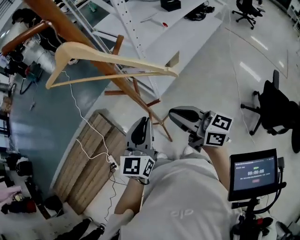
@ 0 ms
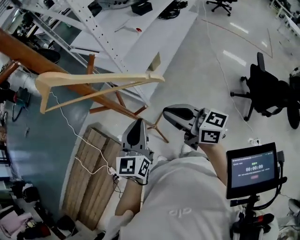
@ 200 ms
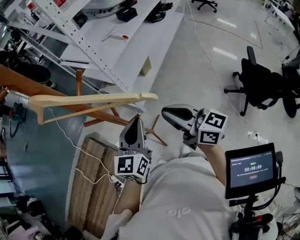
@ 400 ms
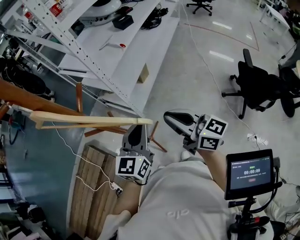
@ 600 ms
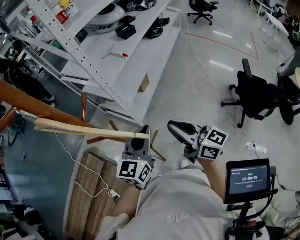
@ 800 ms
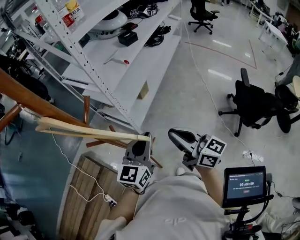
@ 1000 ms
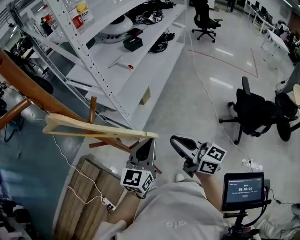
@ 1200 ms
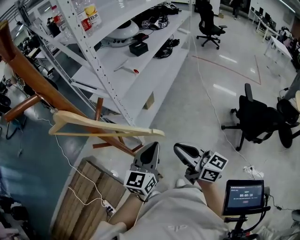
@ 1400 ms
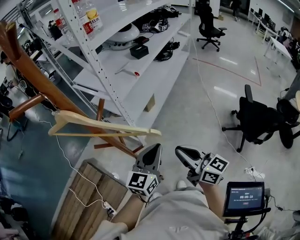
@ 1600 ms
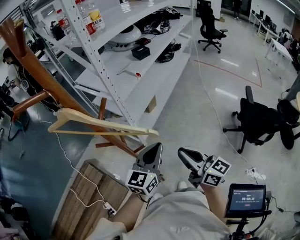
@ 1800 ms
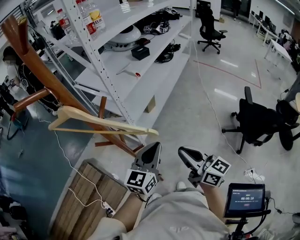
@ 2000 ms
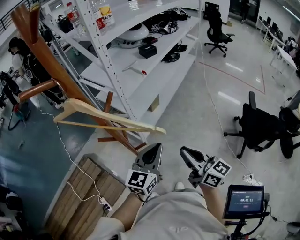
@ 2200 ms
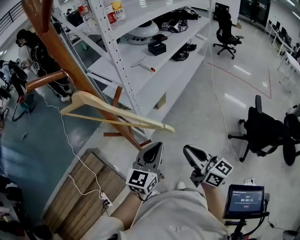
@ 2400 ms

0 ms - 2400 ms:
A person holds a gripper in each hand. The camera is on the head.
0 ms - 1200 ms: The two grippers go roughly 10 cm to the right. The right gripper swivels roughly 20 degrees, while the left gripper changes its angle by roughly 20 degrees.
1200 ms - 2400 ms: The grippers make only small movements.

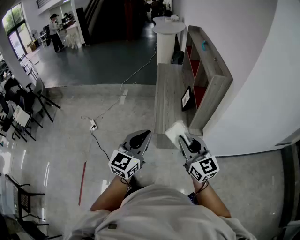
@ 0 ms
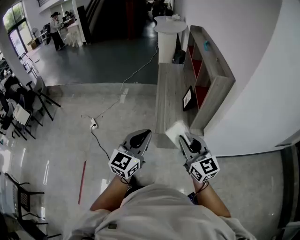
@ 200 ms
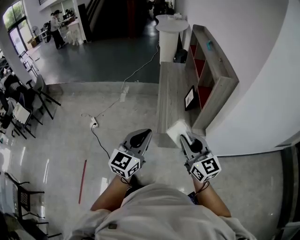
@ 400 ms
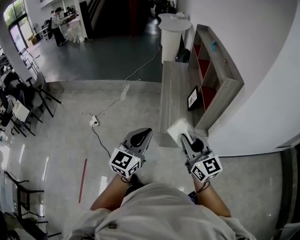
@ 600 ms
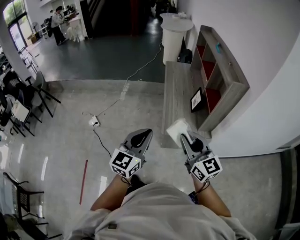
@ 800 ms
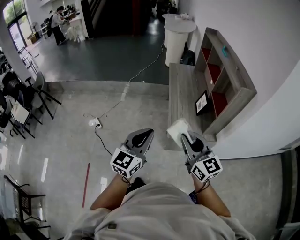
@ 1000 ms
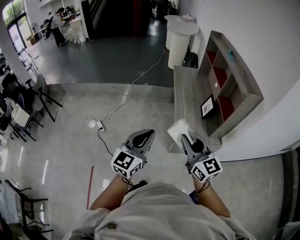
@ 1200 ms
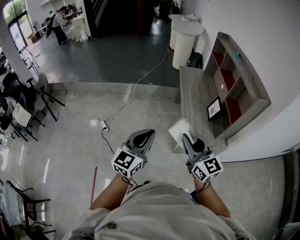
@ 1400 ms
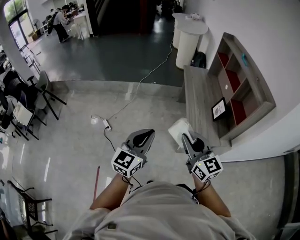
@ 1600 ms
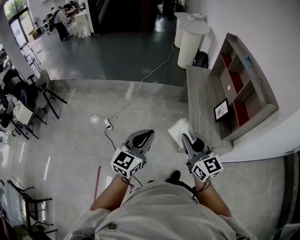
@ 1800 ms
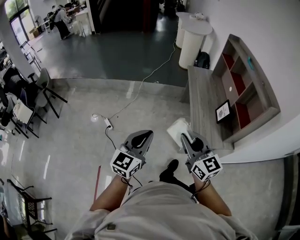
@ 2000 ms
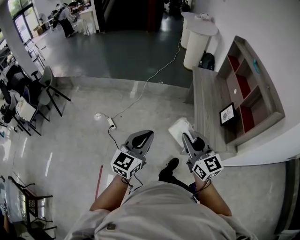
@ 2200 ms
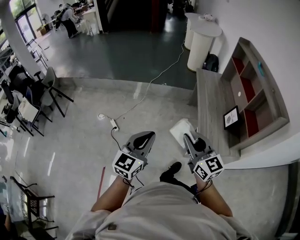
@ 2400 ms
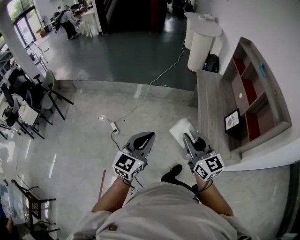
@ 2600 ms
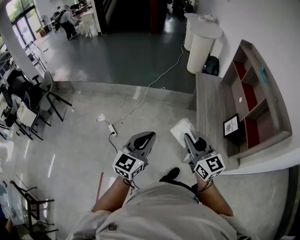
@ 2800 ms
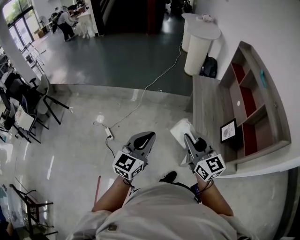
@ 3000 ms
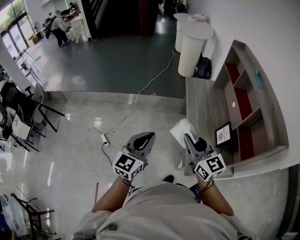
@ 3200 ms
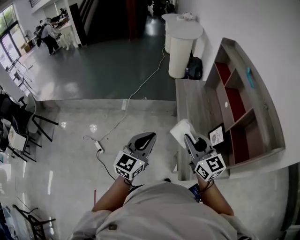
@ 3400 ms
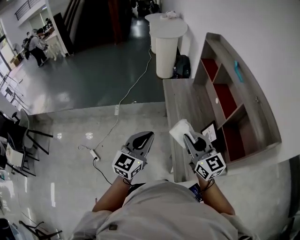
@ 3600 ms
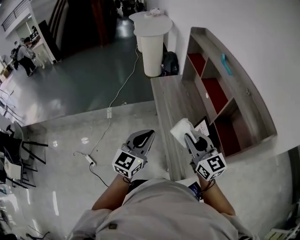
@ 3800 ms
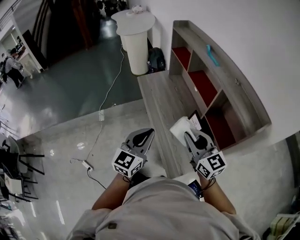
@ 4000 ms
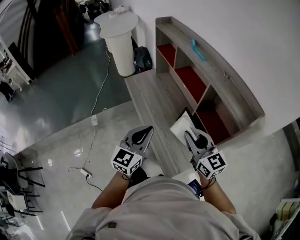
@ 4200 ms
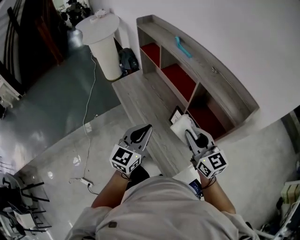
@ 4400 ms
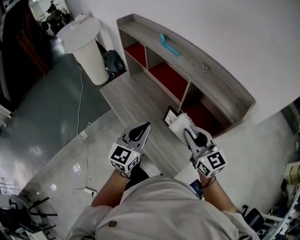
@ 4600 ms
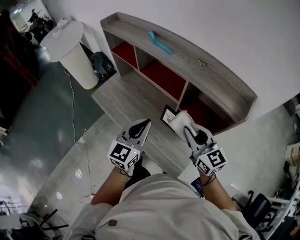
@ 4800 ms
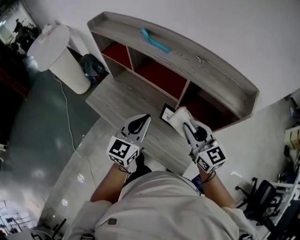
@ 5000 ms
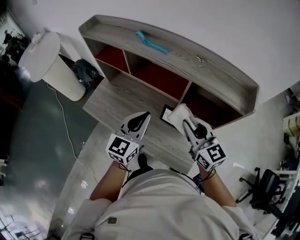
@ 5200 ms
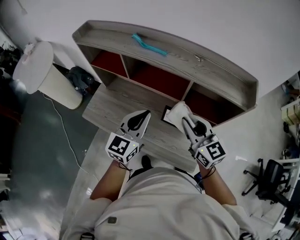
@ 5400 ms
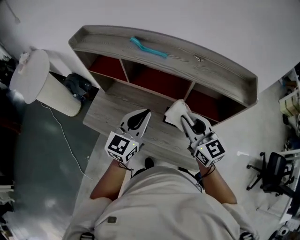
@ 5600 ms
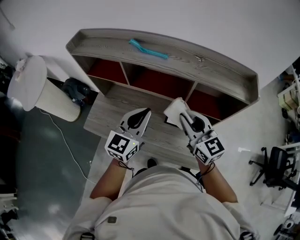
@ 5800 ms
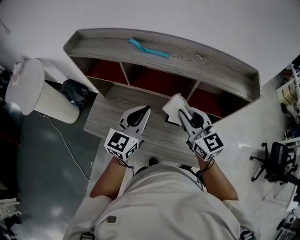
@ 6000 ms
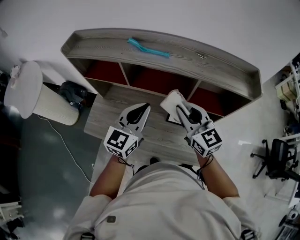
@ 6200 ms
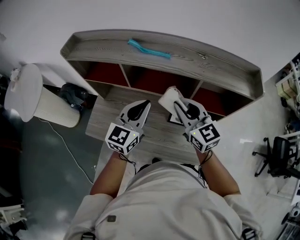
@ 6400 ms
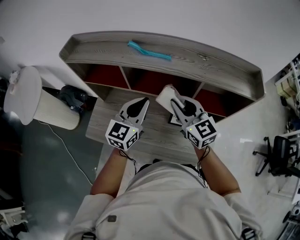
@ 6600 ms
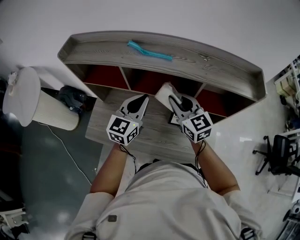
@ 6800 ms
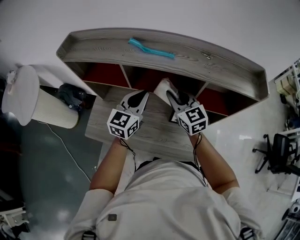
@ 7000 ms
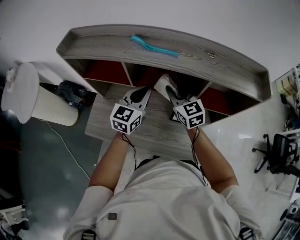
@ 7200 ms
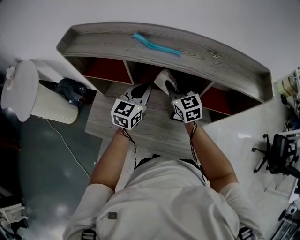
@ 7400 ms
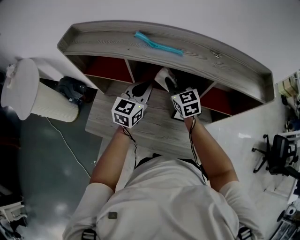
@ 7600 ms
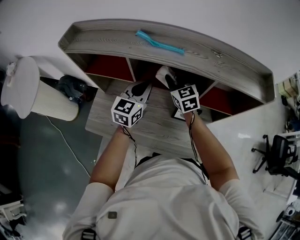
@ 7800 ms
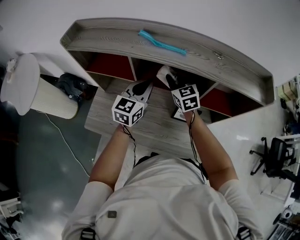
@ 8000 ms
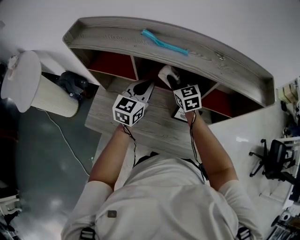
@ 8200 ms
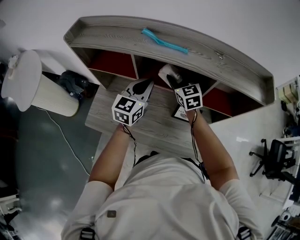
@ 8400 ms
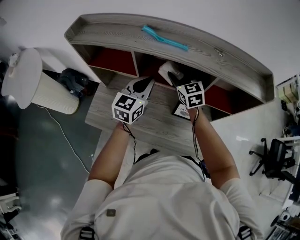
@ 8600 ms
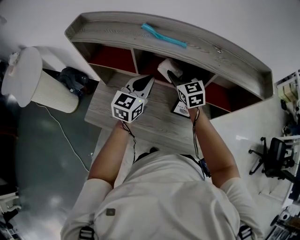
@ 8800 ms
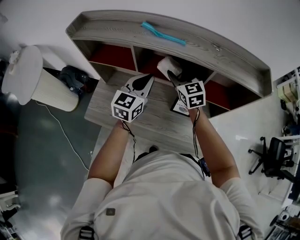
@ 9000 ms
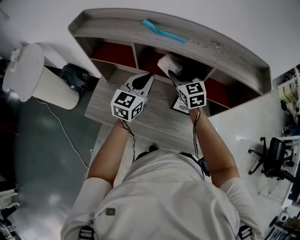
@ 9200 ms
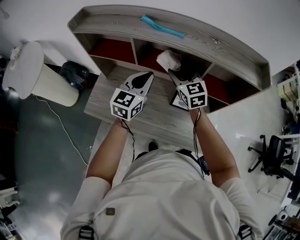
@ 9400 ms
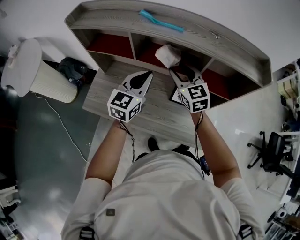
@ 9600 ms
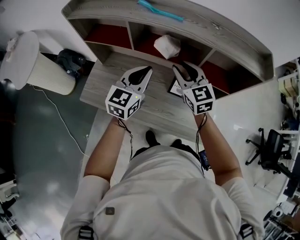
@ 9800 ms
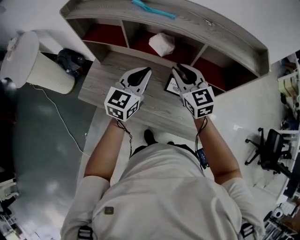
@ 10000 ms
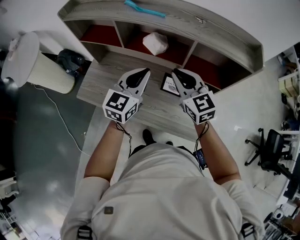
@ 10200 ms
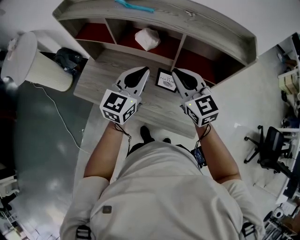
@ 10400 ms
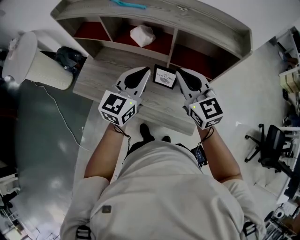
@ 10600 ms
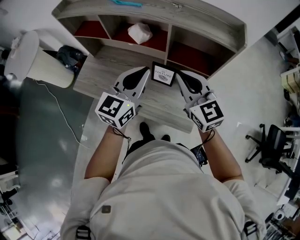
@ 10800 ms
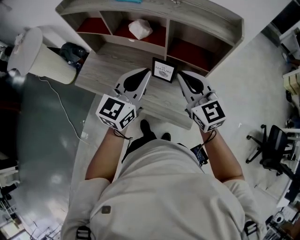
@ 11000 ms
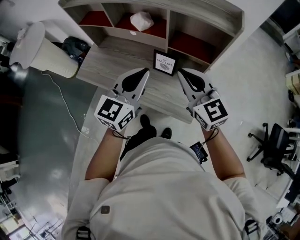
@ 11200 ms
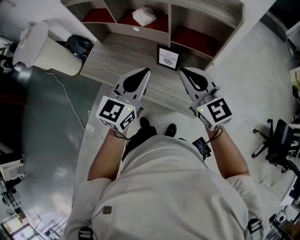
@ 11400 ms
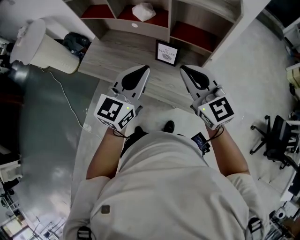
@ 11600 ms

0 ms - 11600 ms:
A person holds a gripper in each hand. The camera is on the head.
0 ms - 1400 ms: Both grippers move to the left and forward, roughly 30 cm.
1400 ms - 2800 ms: Both grippers travel together forward and to the left, roughly 20 cm.
2800 ms - 4400 ms: The left gripper changes place by some 50 cm, and swivels approximately 40 degrees; the right gripper shifts by some 40 cm, and rotates about 40 degrees.
4400 ms - 5800 ms: The right gripper shifts by approximately 20 cm, and rotates roughly 40 degrees, while the left gripper changes place by some 25 cm, and swivels roughly 40 degrees.
5800 ms - 7200 ms: The right gripper moves forward, to the left and downward, roughly 20 cm, while the left gripper shifts some 15 cm forward and downward.
7200 ms - 8800 ms: The right gripper opens its fingers.
8800 ms - 10200 ms: Both grippers travel together backward and to the right, approximately 15 cm. The right gripper closes its fingers.
10200 ms - 11600 ms: The grippers both shift backward and to the right by some 20 cm.

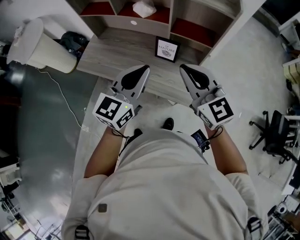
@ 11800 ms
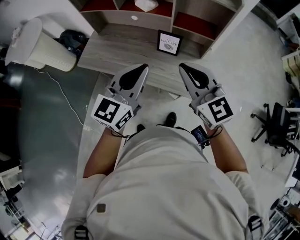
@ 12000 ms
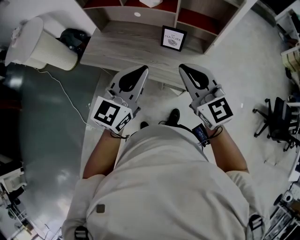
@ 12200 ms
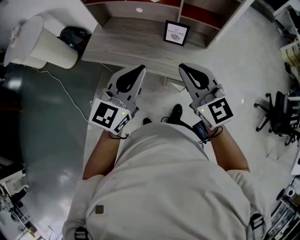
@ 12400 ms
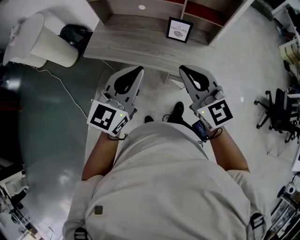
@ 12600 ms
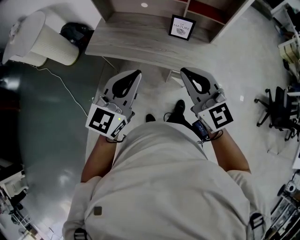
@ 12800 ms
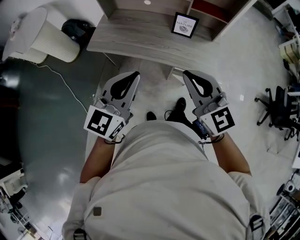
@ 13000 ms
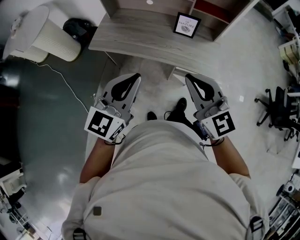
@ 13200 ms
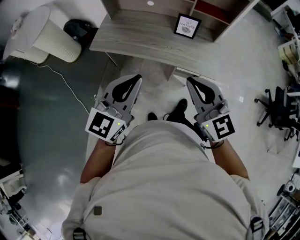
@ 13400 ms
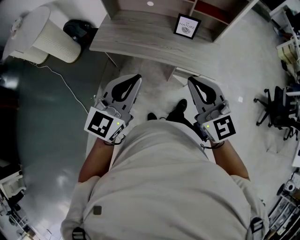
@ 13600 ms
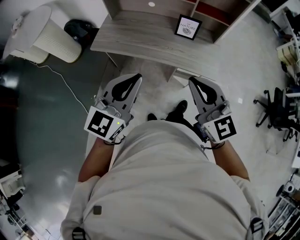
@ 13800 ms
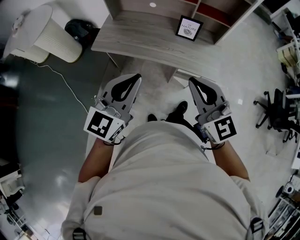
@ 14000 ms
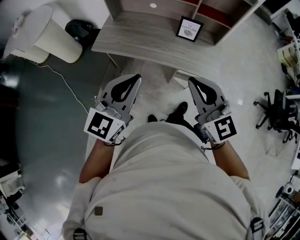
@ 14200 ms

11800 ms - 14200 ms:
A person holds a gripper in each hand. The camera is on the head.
11800 ms - 13000 ms: The right gripper travels backward and to the left by about 25 cm; the left gripper travels to the left and backward by approximately 25 cm.
13000 ms - 14200 ms: The grippers stay close to where they were, moving slightly.

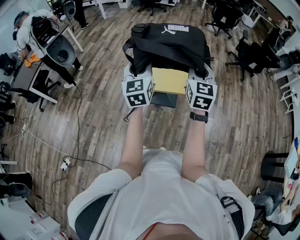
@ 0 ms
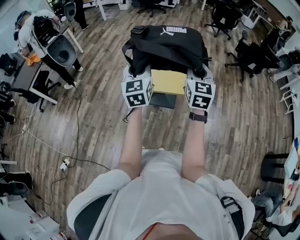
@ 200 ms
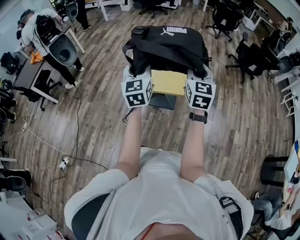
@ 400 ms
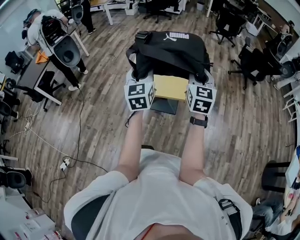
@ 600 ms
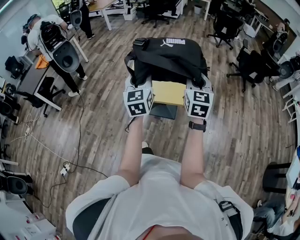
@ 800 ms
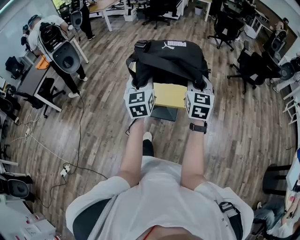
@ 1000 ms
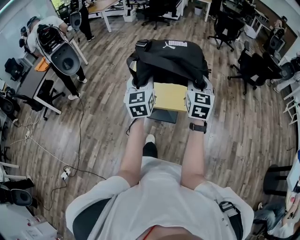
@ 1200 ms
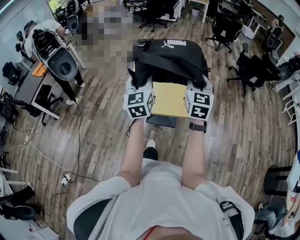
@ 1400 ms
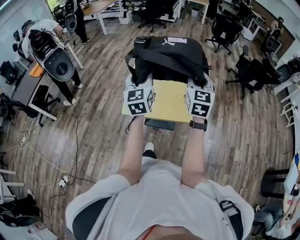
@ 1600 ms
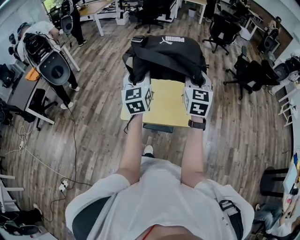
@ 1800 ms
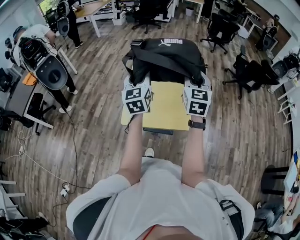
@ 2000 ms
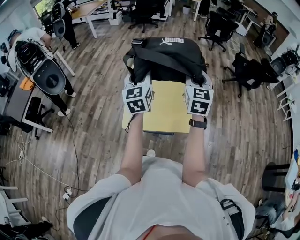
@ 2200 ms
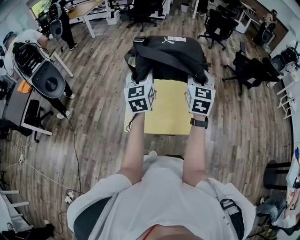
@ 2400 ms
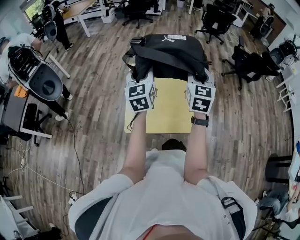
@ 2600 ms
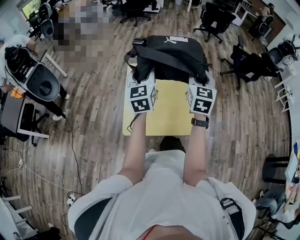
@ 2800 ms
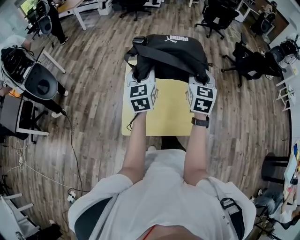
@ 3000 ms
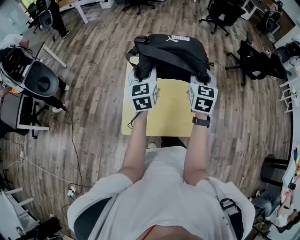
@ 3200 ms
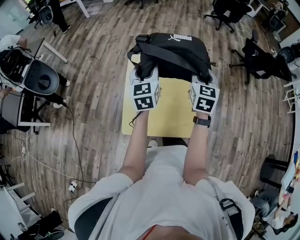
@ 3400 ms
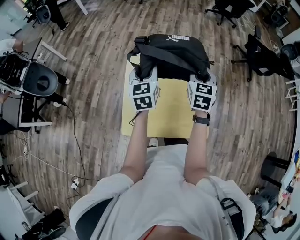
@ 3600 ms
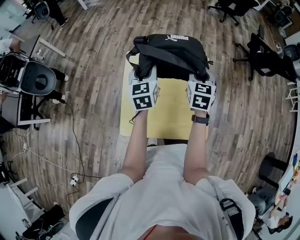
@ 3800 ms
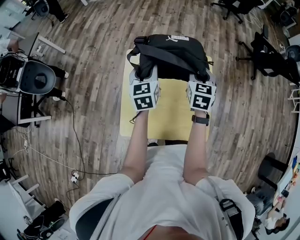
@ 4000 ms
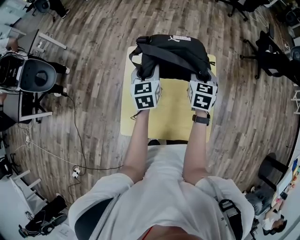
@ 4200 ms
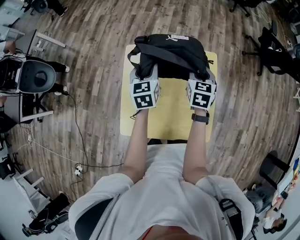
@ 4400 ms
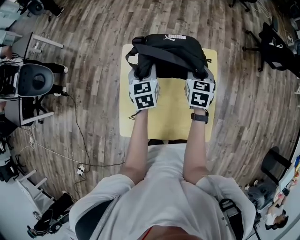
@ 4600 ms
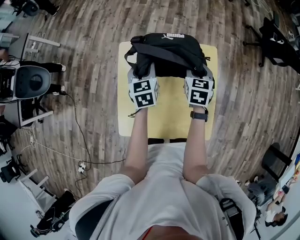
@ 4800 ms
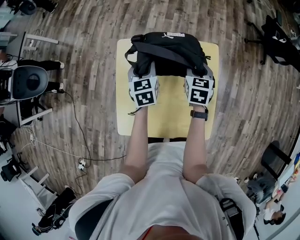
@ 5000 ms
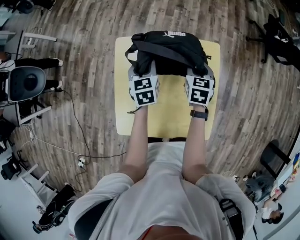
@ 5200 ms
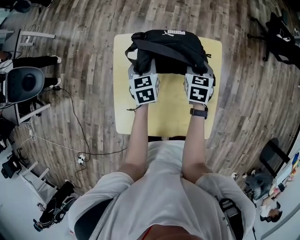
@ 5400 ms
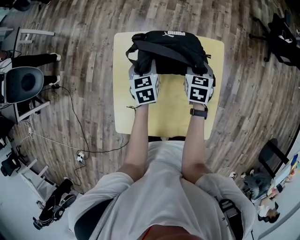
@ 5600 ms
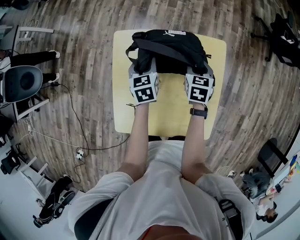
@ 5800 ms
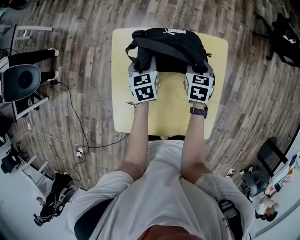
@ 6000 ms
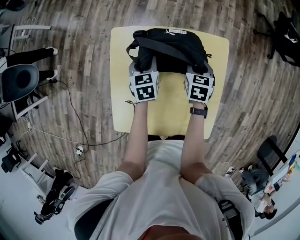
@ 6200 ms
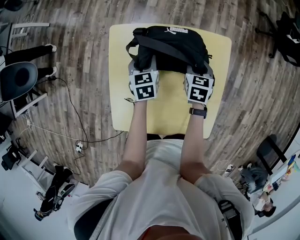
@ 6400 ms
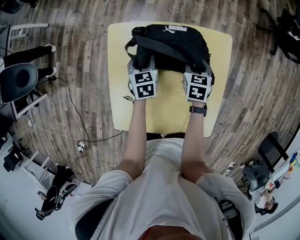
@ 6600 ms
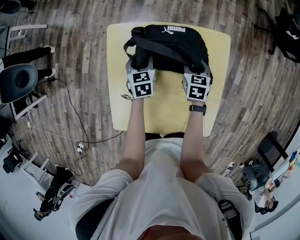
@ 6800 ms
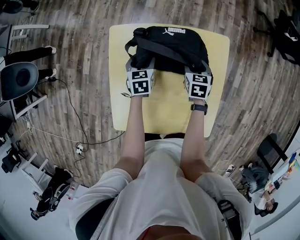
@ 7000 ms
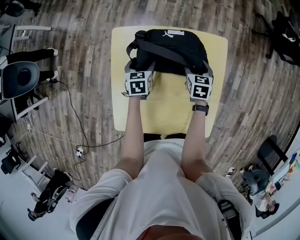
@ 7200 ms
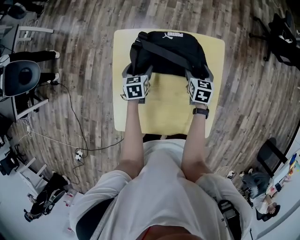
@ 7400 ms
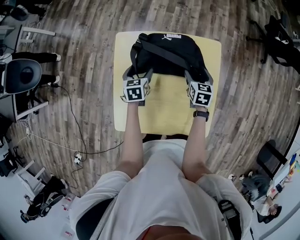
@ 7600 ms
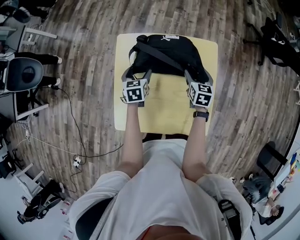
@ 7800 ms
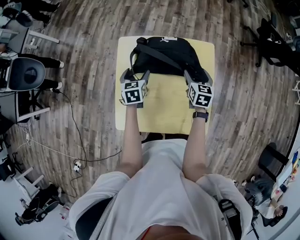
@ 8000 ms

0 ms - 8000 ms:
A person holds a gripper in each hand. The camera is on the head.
0 ms - 1600 ms: Both grippers travel together forward, approximately 10 cm.
1600 ms - 3200 ms: Both grippers move forward and downward, about 25 cm.
3200 ms - 4800 ms: The grippers both shift downward and forward by roughly 25 cm. The left gripper changes its angle by about 20 degrees. Meanwhile the right gripper rotates about 20 degrees.
4800 ms - 6400 ms: The two grippers go some 15 cm downward.
6400 ms - 8000 ms: The left gripper heads backward, covering roughly 10 cm, and opens. The right gripper travels upward and backward by some 10 cm, and opens up.
